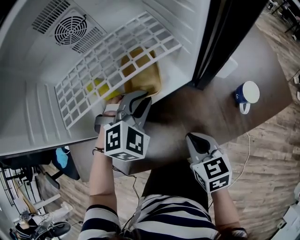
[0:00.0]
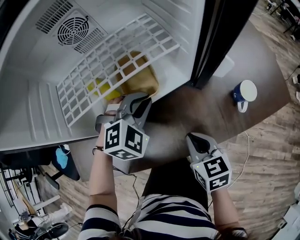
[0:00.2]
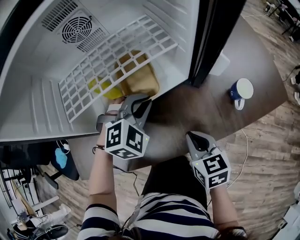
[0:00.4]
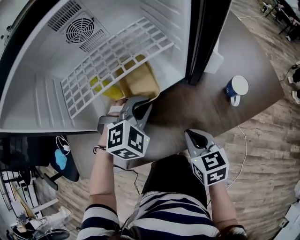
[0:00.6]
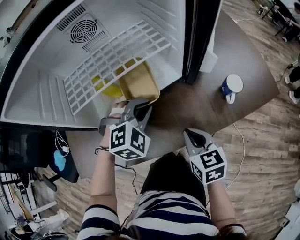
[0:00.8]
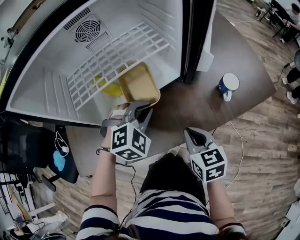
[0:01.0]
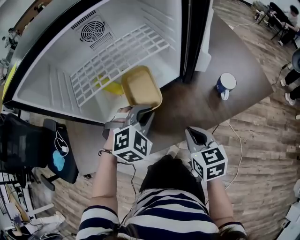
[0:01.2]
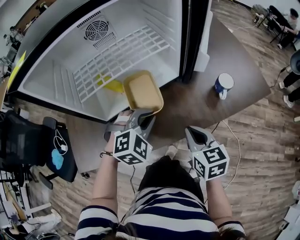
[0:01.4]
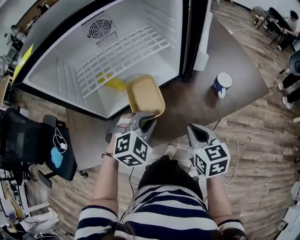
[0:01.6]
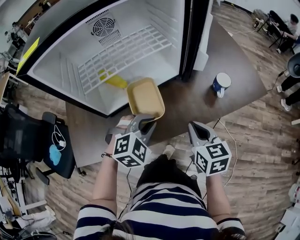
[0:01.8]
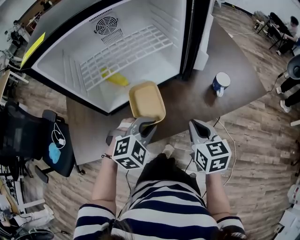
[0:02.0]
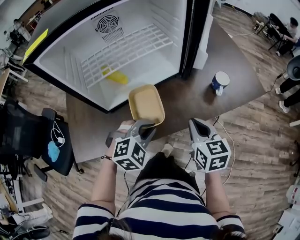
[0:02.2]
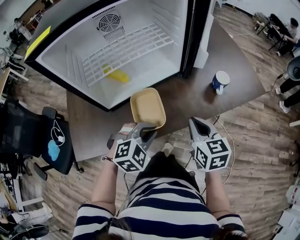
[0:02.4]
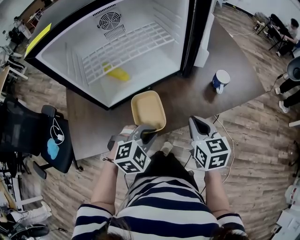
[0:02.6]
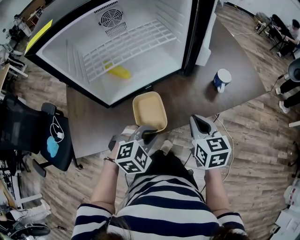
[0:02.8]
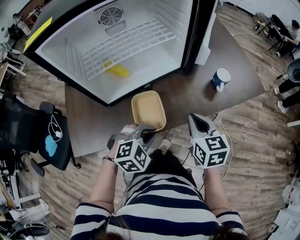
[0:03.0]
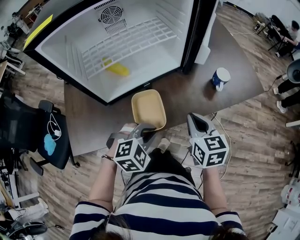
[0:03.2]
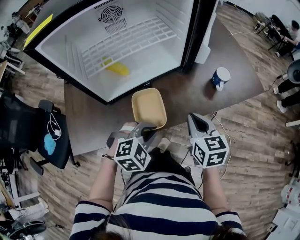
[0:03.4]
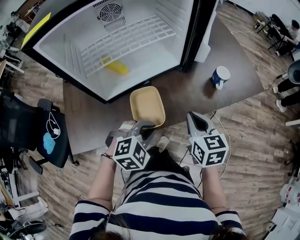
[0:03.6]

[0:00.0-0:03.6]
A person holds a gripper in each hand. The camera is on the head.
0:00.0 to 0:01.8: The left gripper is displaced backward by approximately 20 cm. The right gripper travels upward and backward by some 10 cm.
0:01.8 to 0:03.6: The left gripper goes about 10 cm backward.

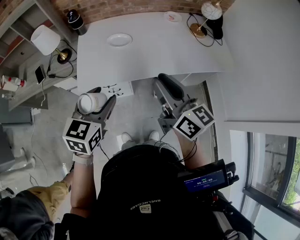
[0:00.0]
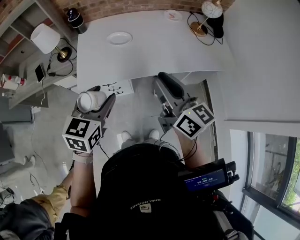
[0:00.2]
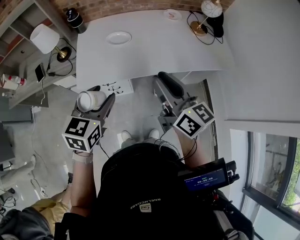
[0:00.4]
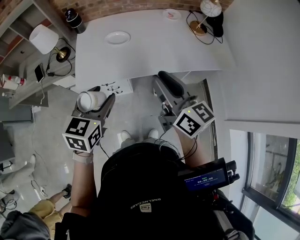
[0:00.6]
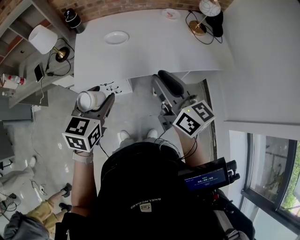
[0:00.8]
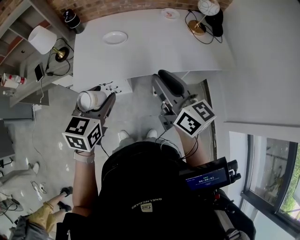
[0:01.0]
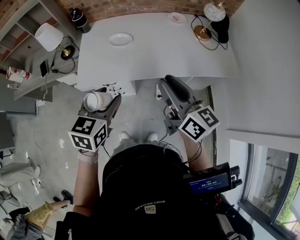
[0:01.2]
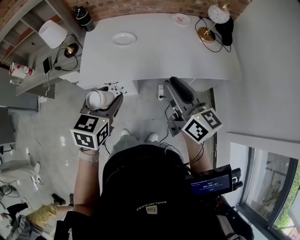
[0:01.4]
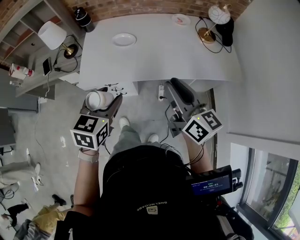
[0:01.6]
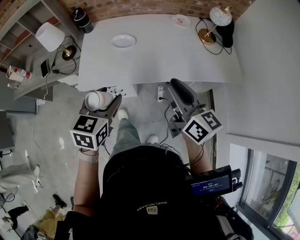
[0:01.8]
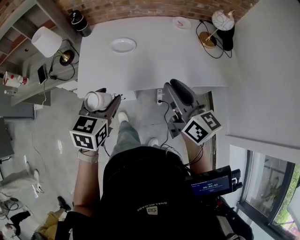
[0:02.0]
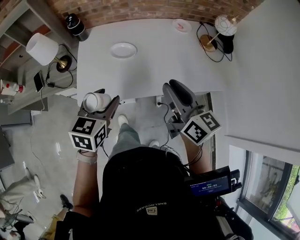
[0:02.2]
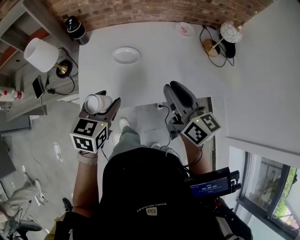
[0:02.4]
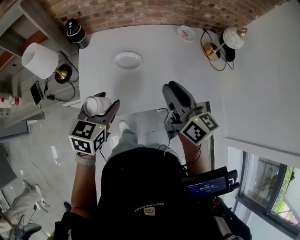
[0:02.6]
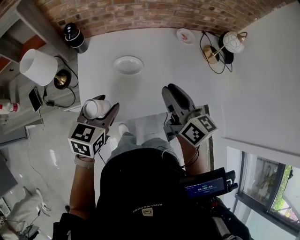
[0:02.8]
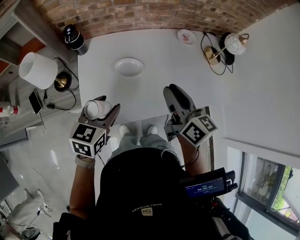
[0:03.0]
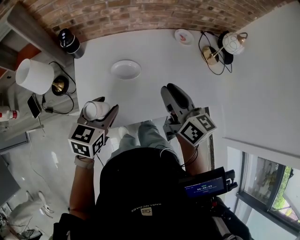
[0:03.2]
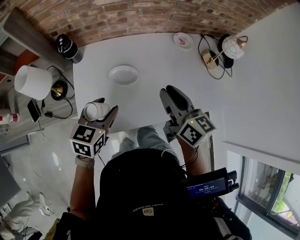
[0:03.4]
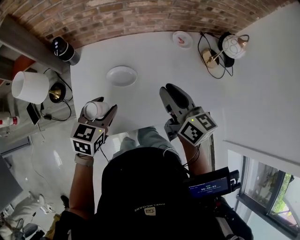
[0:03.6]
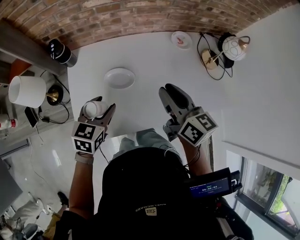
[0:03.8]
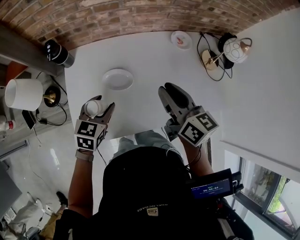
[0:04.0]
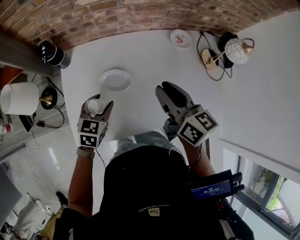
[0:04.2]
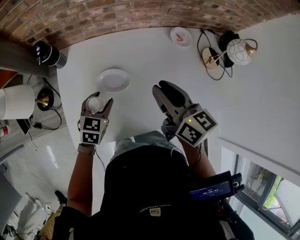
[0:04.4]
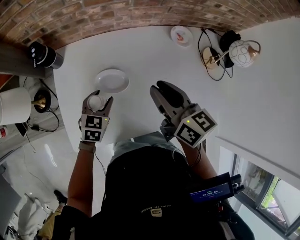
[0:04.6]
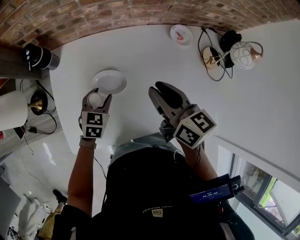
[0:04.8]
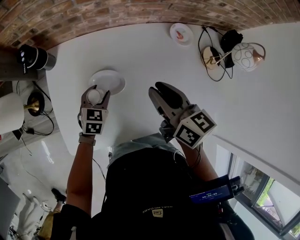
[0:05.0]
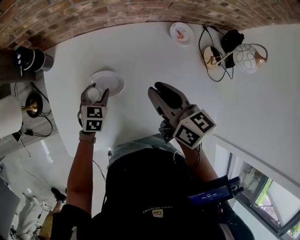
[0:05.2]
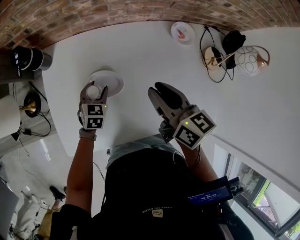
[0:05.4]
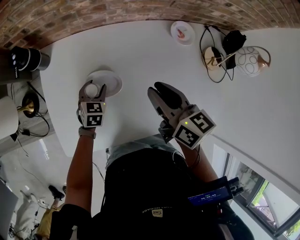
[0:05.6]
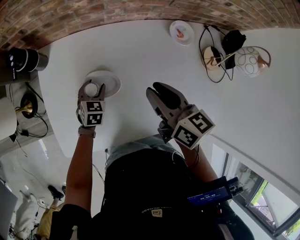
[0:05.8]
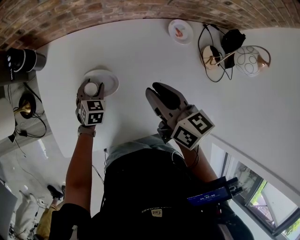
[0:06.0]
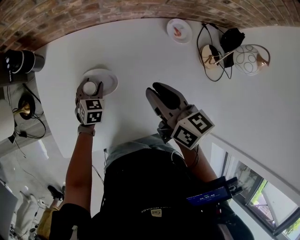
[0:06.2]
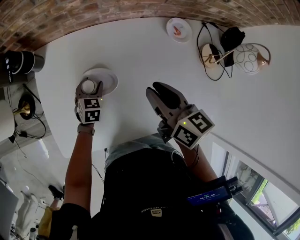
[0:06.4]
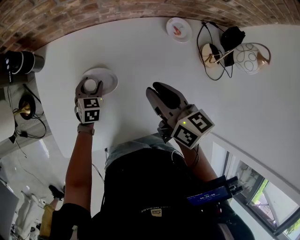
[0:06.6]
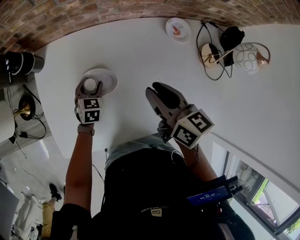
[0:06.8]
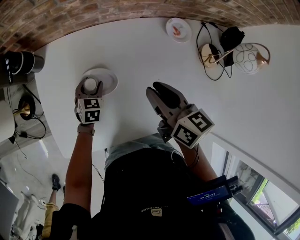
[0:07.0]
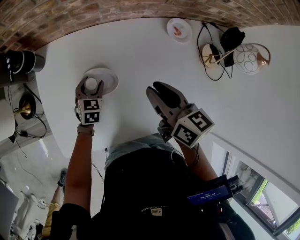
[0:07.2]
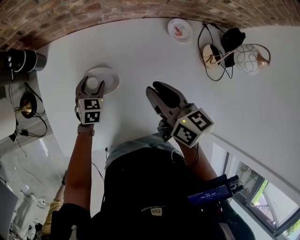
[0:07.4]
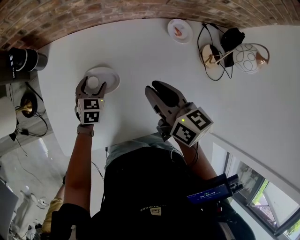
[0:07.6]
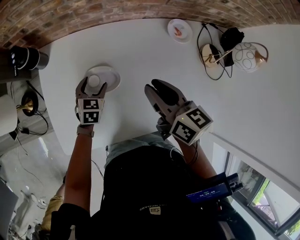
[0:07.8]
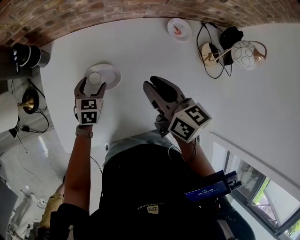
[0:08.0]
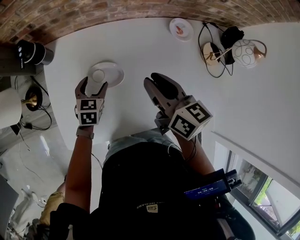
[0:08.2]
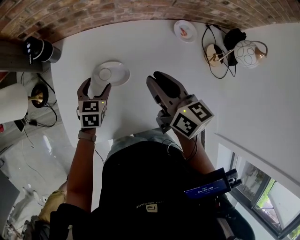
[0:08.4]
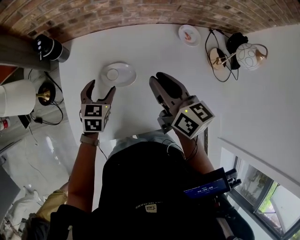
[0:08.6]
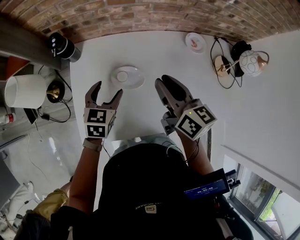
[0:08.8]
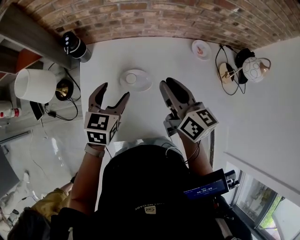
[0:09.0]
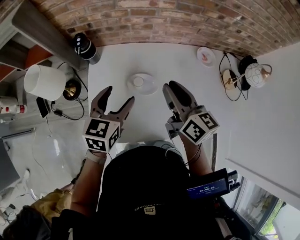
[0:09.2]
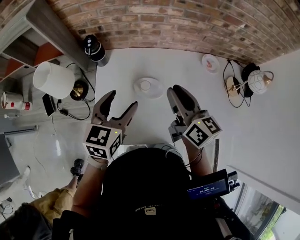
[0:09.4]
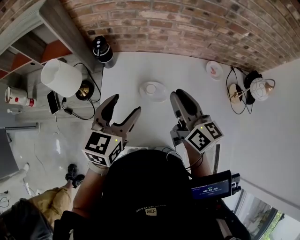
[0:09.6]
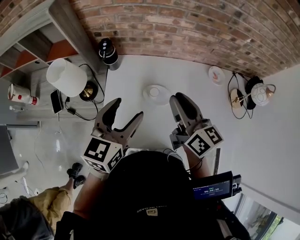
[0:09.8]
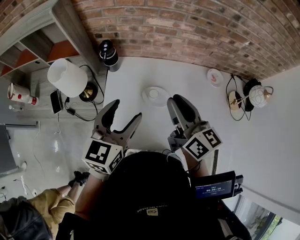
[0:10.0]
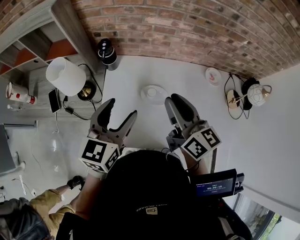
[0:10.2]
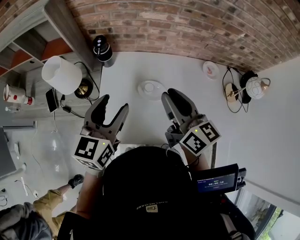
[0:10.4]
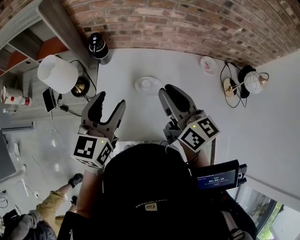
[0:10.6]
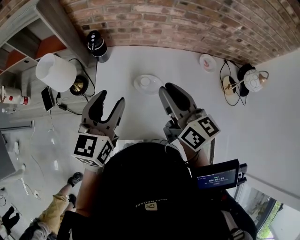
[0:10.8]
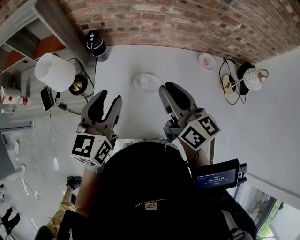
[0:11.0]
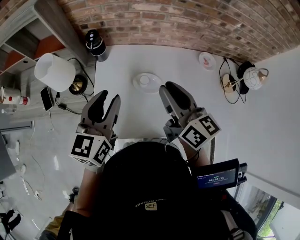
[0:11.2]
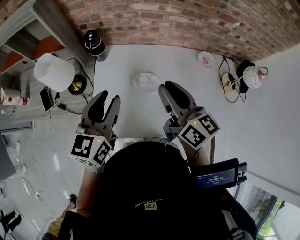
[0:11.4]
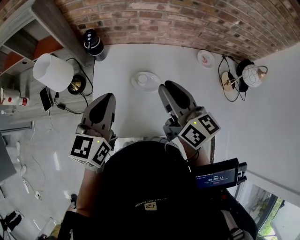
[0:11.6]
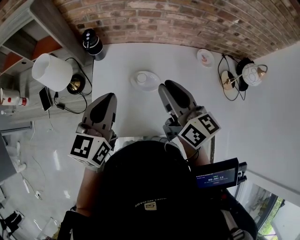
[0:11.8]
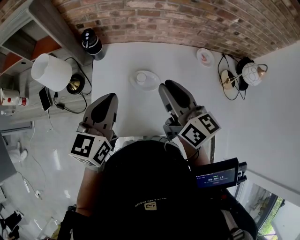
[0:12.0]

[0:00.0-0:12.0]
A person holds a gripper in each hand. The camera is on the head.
0:00.0 to 0:01.6: The grippers both shift to the right by roughly 5 cm.
0:01.6 to 0:03.0: Both grippers travel together forward and to the left, some 25 cm.
0:03.0 to 0:04.4: The left gripper shifts about 20 cm forward and downward; the right gripper is displaced forward by some 10 cm.
0:04.4 to 0:06.0: The left gripper travels downward and forward by approximately 15 cm, while the right gripper shifts approximately 5 cm downward.
0:06.0 to 0:07.6: There are only small adjustments of the grippers.
0:07.6 to 0:09.0: The right gripper travels upward and to the left by approximately 10 cm. The left gripper shifts roughly 20 cm upward.
0:09.0 to 0:10.4: The right gripper moves to the left and upward, roughly 10 cm; the left gripper is displaced upward, to the left and backward by some 15 cm, and turns by roughly 20 degrees.
0:10.4 to 0:12.0: The left gripper closes up.

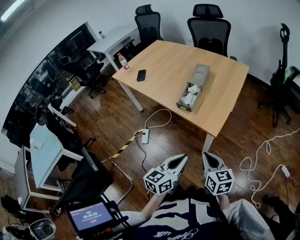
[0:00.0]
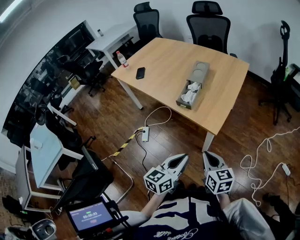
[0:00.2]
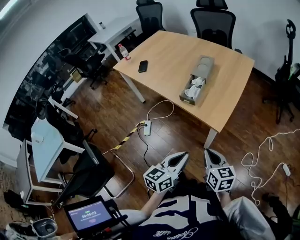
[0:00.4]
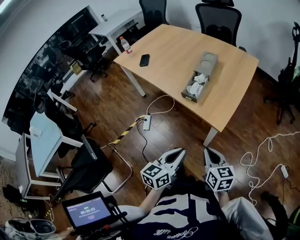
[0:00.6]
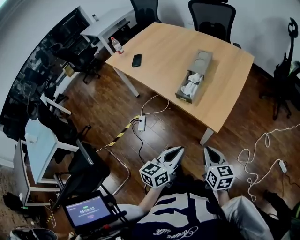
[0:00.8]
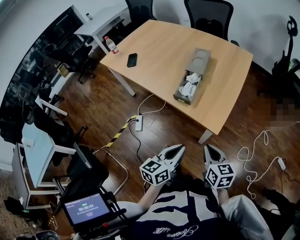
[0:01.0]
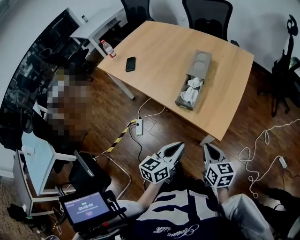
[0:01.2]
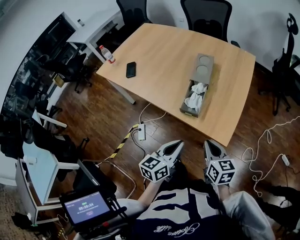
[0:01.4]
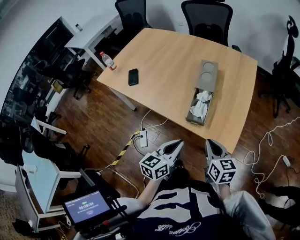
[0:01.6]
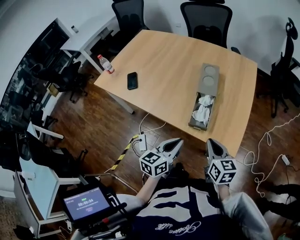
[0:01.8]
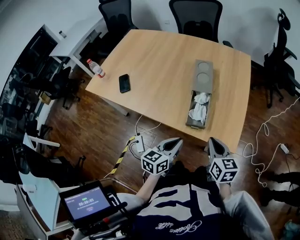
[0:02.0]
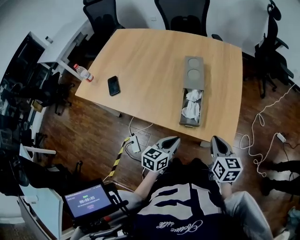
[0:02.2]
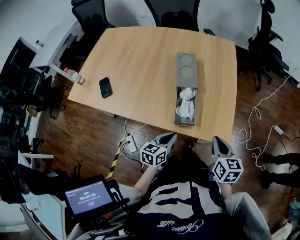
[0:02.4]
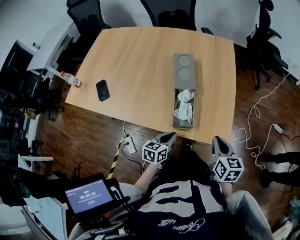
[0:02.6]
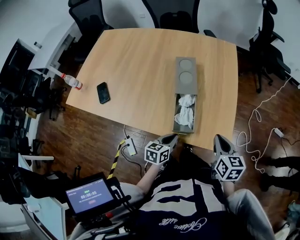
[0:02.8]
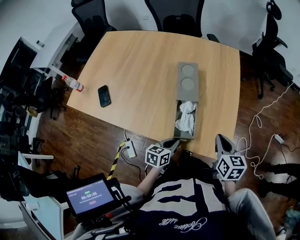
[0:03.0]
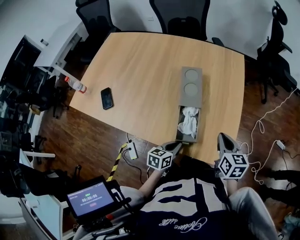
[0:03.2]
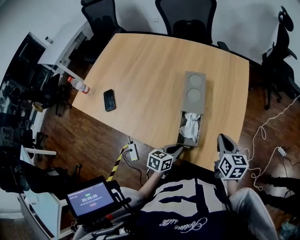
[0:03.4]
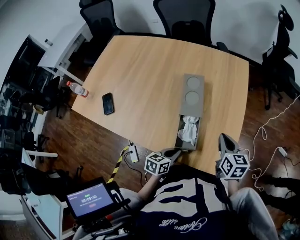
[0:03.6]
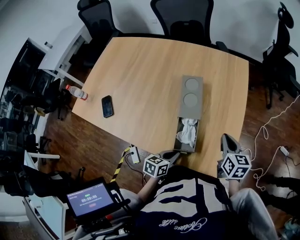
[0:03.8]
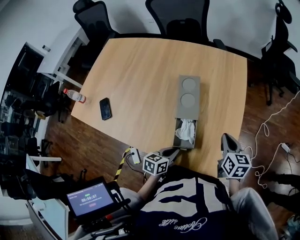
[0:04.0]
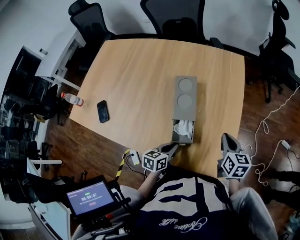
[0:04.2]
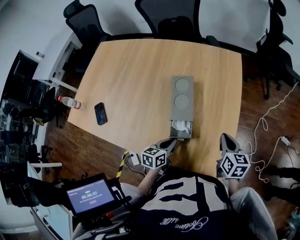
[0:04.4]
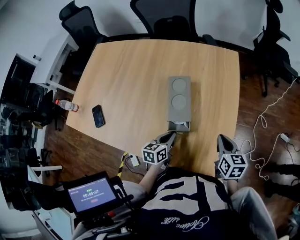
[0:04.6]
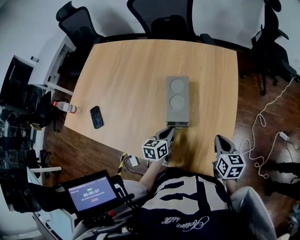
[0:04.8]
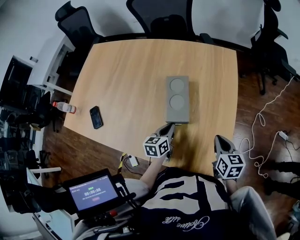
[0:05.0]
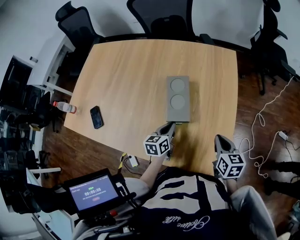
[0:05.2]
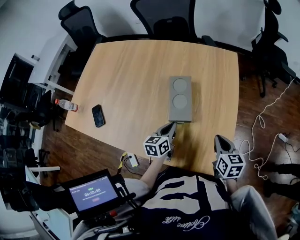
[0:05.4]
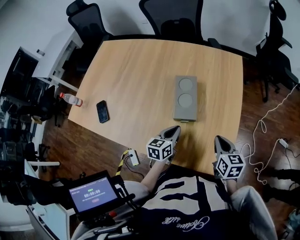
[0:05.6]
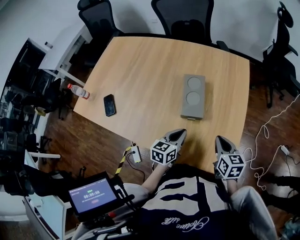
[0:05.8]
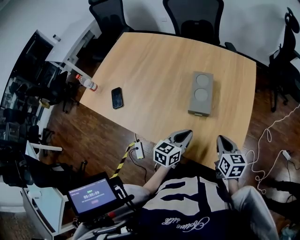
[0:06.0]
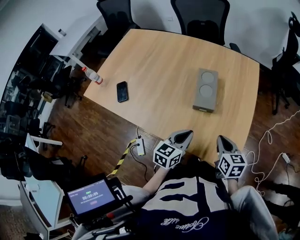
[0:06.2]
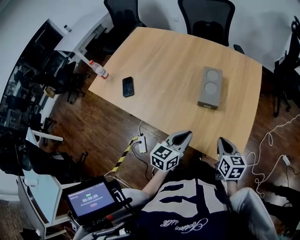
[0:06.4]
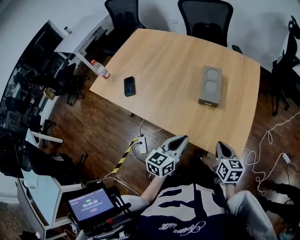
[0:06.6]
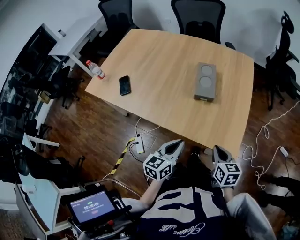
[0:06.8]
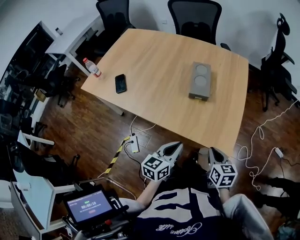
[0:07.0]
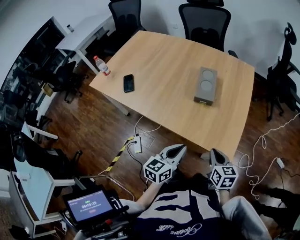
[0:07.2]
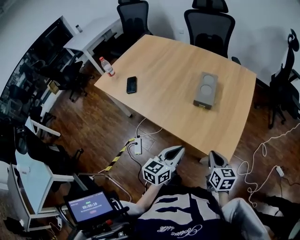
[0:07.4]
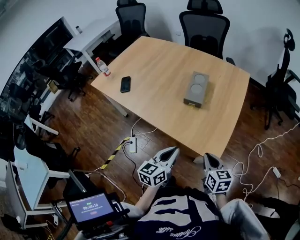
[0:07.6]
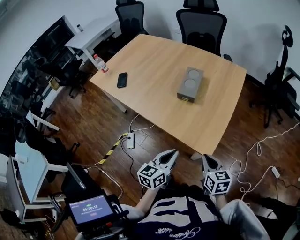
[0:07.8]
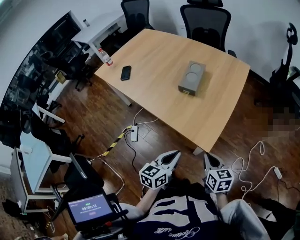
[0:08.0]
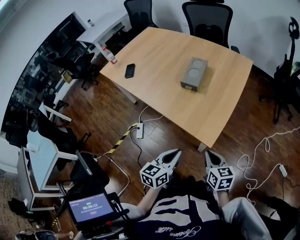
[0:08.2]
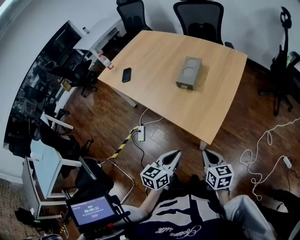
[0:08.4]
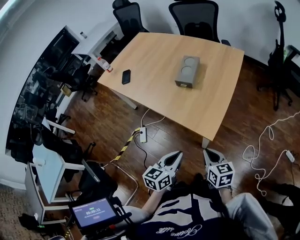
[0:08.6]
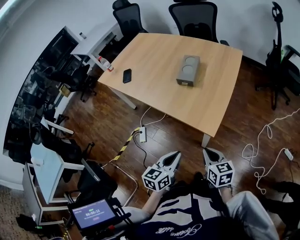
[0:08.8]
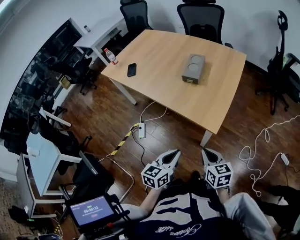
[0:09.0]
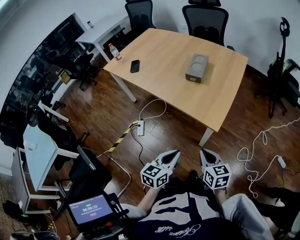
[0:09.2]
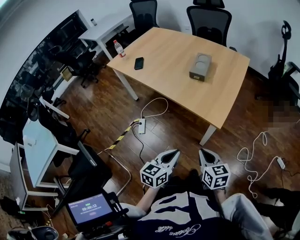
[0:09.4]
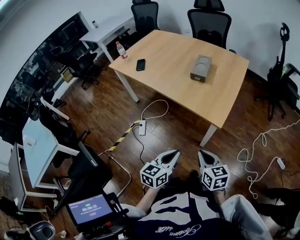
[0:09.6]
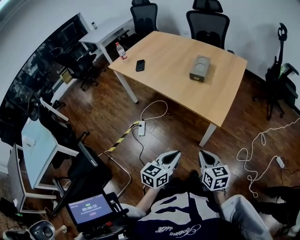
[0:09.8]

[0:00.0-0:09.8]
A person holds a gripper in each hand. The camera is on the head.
0:00.0 to 0:01.4: The right gripper is displaced forward by about 15 cm; the left gripper goes some 20 cm forward and to the left.
0:01.4 to 0:02.8: The left gripper moves forward and downward, roughly 20 cm, and swivels about 30 degrees. Meanwhile the right gripper goes roughly 10 cm forward, and swivels roughly 20 degrees.
0:02.8 to 0:04.2: The left gripper moves forward, roughly 10 cm; the right gripper goes approximately 15 cm forward.
0:04.2 to 0:05.6: The left gripper moves forward, approximately 5 cm.
0:05.6 to 0:07.0: The two grippers go some 20 cm backward.
0:07.0 to 0:08.4: The two grippers go about 15 cm to the right and backward. The right gripper changes its angle by roughly 20 degrees.
0:08.4 to 0:09.8: Both grippers move backward and to the left, some 20 cm.
